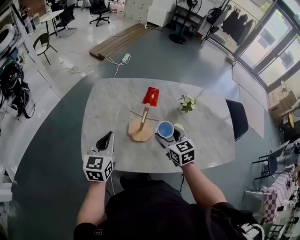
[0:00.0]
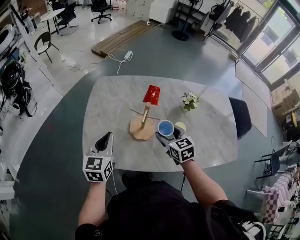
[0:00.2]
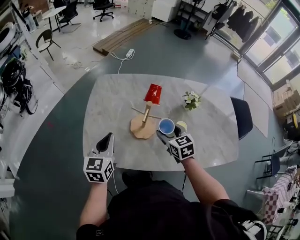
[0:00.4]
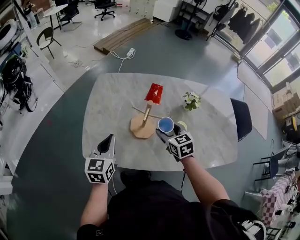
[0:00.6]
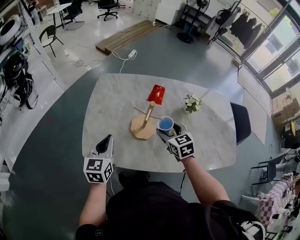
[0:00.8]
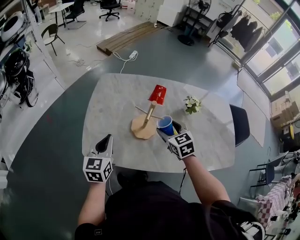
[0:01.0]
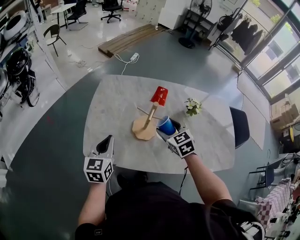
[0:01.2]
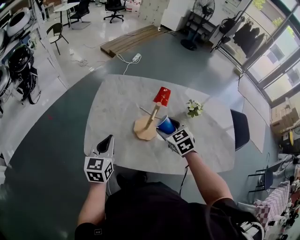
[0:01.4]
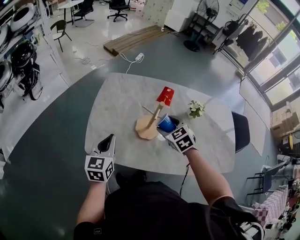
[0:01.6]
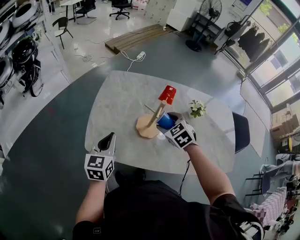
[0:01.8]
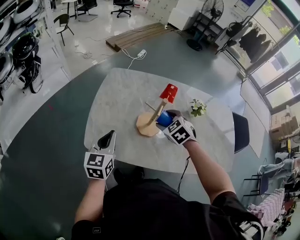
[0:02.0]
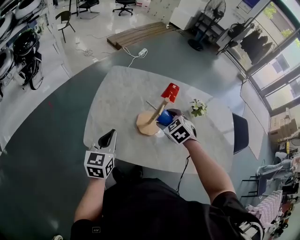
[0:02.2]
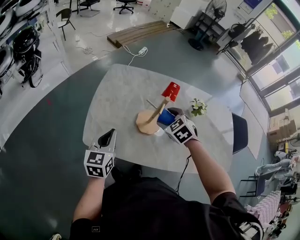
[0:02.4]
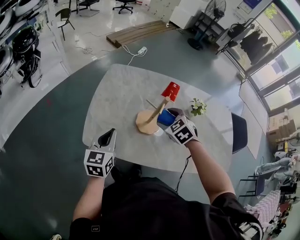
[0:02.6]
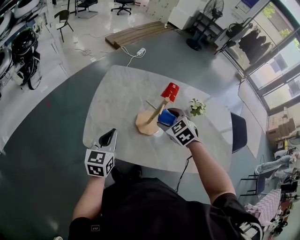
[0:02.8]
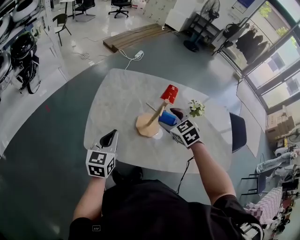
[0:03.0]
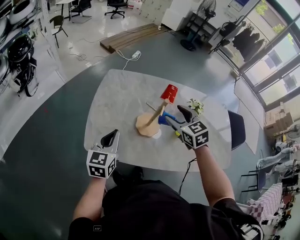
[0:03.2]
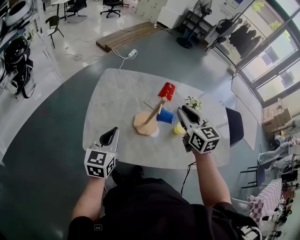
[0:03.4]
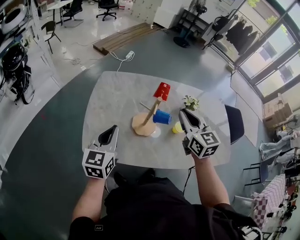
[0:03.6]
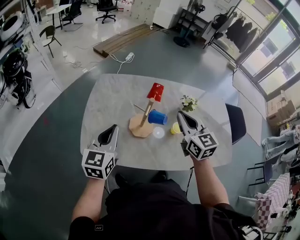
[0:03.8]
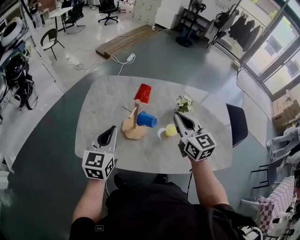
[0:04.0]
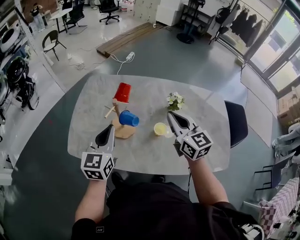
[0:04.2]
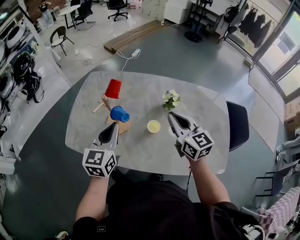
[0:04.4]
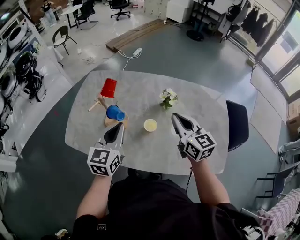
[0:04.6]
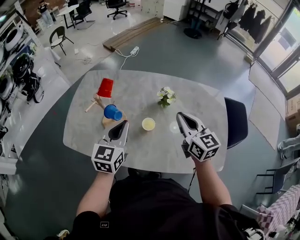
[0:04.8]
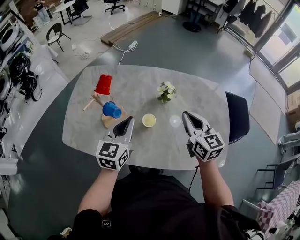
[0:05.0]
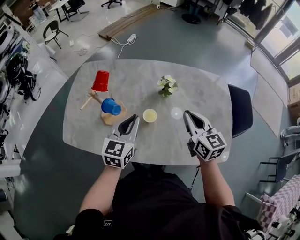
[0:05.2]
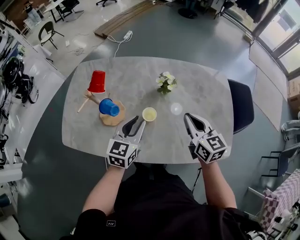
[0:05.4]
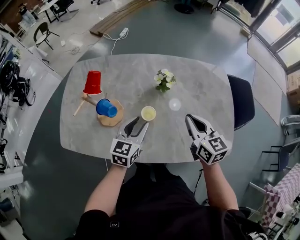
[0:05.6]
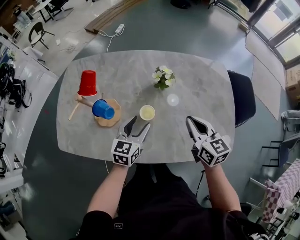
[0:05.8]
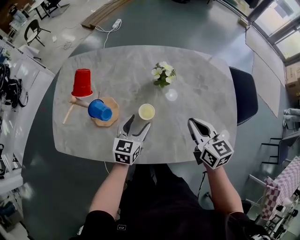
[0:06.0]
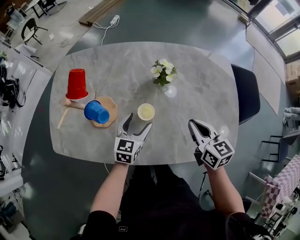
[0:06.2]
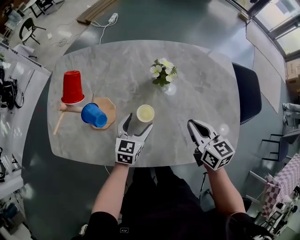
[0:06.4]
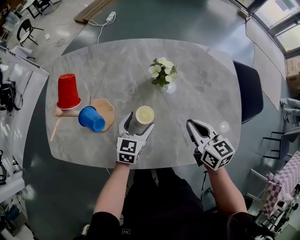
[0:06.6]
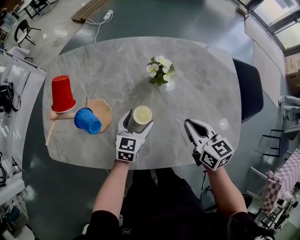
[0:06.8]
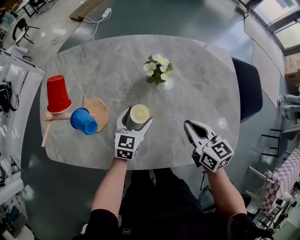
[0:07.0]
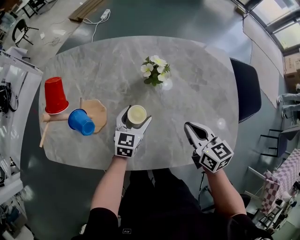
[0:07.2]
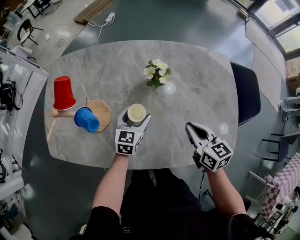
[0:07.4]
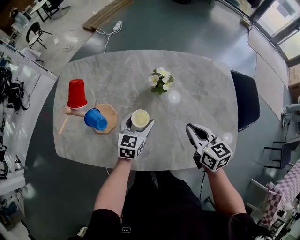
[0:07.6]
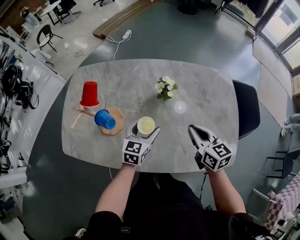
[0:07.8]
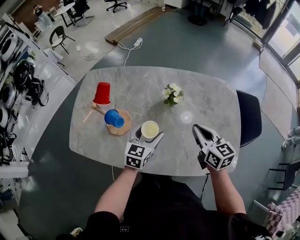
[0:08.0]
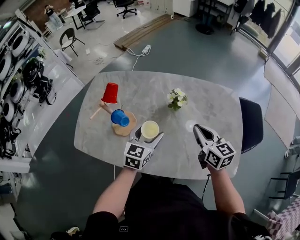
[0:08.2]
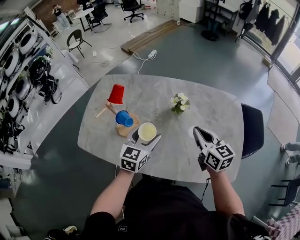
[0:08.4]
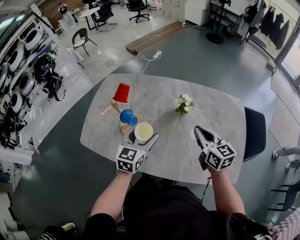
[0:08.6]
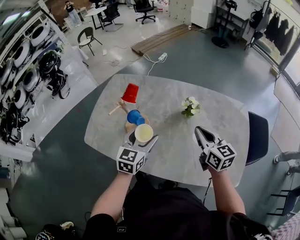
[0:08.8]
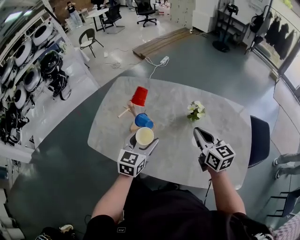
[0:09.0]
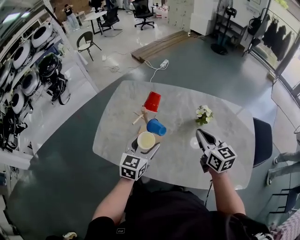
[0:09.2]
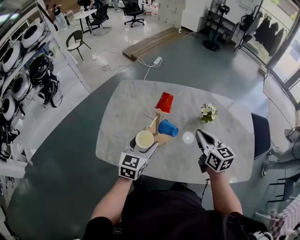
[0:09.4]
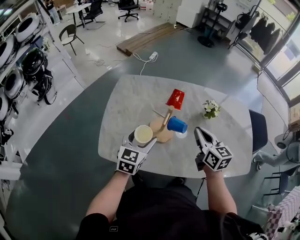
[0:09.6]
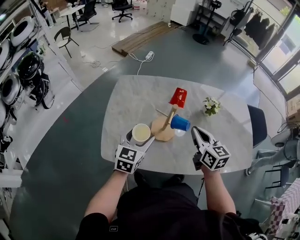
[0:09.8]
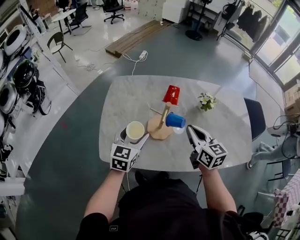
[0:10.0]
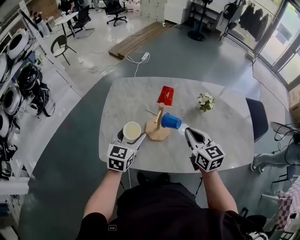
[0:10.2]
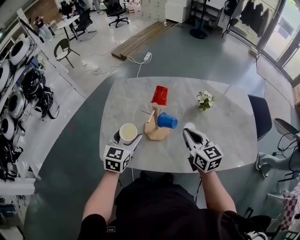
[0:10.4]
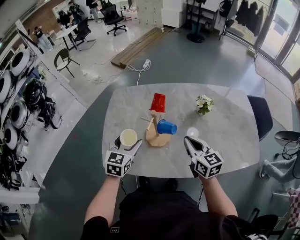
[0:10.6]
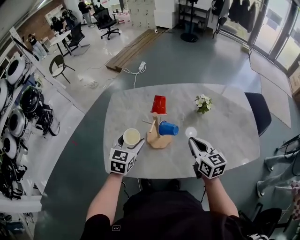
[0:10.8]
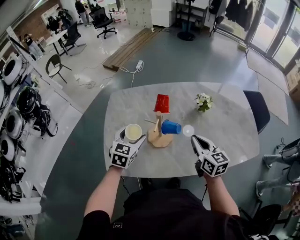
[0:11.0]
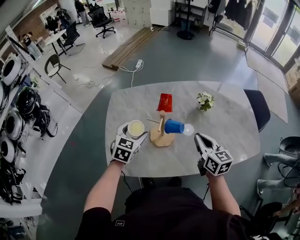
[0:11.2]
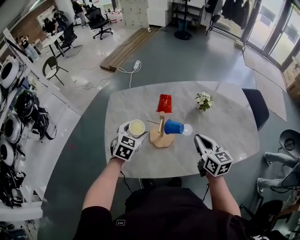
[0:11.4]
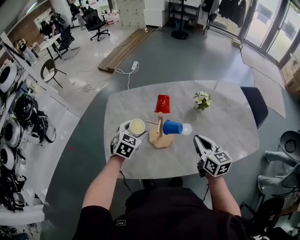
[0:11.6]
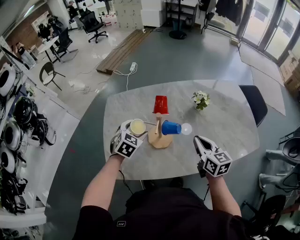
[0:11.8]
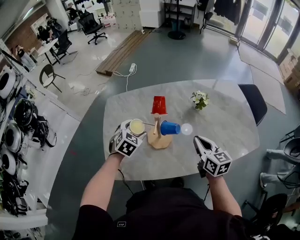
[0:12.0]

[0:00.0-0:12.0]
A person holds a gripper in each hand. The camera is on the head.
0:00.0 to 0:01.6: The left gripper ends up some 5 cm from where it was. The right gripper changes place by about 5 cm, and turns by about 30 degrees.
0:01.6 to 0:03.0: The grippers move only a little.
0:03.0 to 0:04.4: The grippers both shift to the right by approximately 25 cm. The right gripper tips its fingers upward by roughly 40 degrees, and closes its fingers.
0:04.4 to 0:06.0: The right gripper is displaced downward and to the right by approximately 15 cm, and changes its angle by about 20 degrees. The left gripper goes roughly 25 cm downward and to the right, turns by approximately 20 degrees, and opens.
0:06.0 to 0:07.6: The left gripper heads forward, covering about 5 cm.
0:07.6 to 0:09.0: The left gripper heads upward and to the left, covering roughly 20 cm; the right gripper goes about 15 cm to the left and upward.
0:09.0 to 0:10.4: Both grippers move to the left, approximately 15 cm.
0:10.4 to 0:12.0: The left gripper goes approximately 10 cm forward and downward, and turns by approximately 40 degrees.

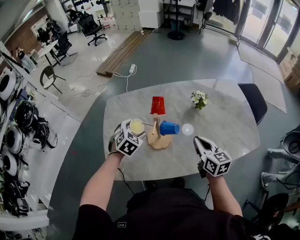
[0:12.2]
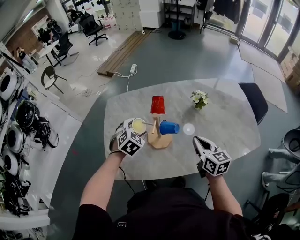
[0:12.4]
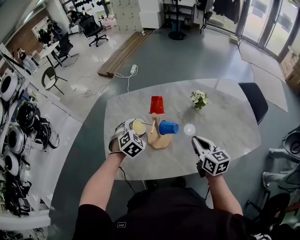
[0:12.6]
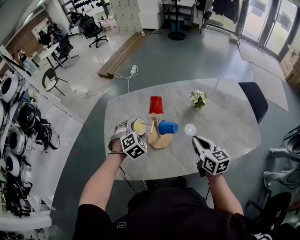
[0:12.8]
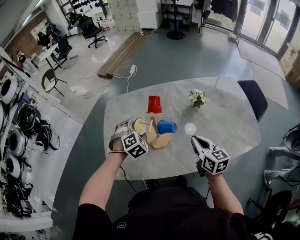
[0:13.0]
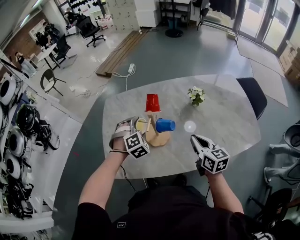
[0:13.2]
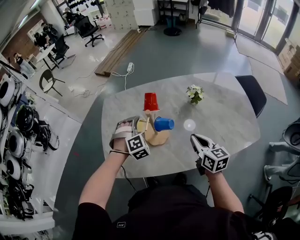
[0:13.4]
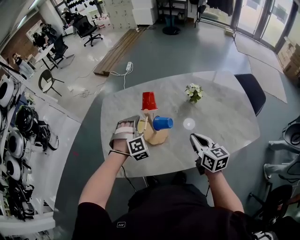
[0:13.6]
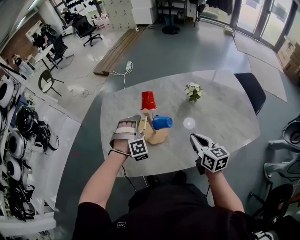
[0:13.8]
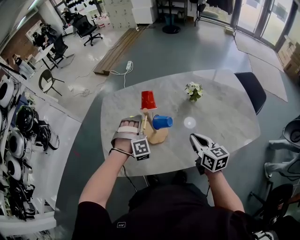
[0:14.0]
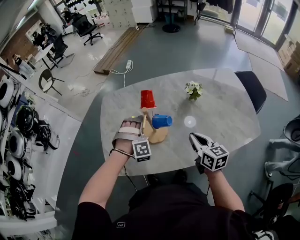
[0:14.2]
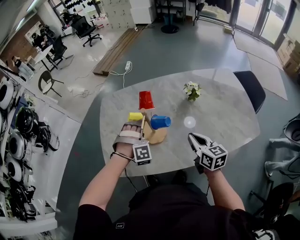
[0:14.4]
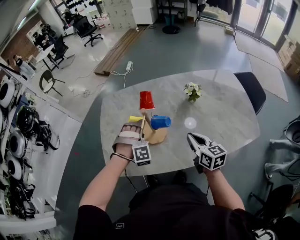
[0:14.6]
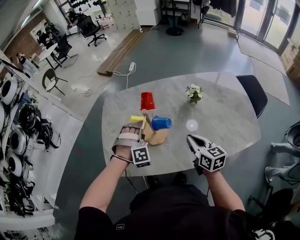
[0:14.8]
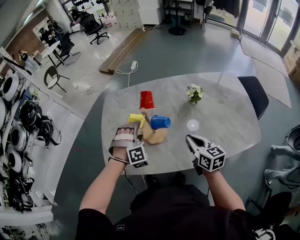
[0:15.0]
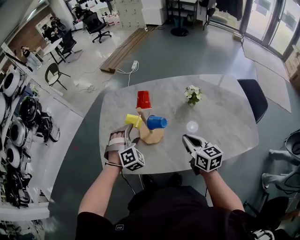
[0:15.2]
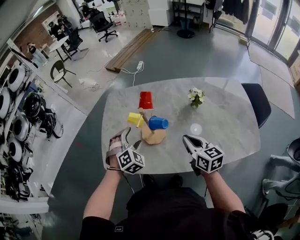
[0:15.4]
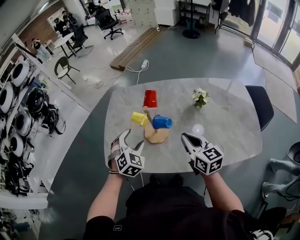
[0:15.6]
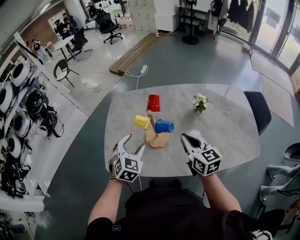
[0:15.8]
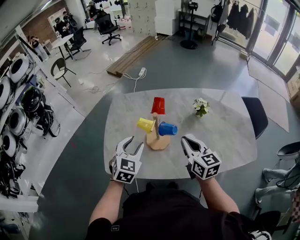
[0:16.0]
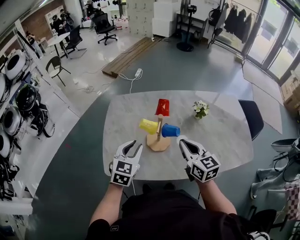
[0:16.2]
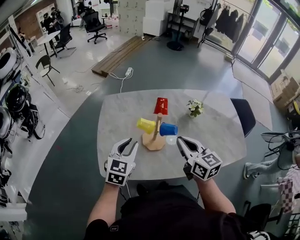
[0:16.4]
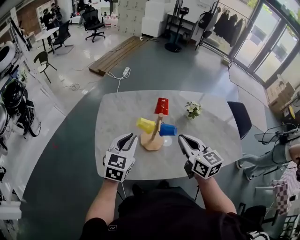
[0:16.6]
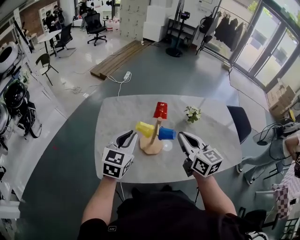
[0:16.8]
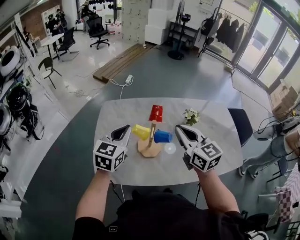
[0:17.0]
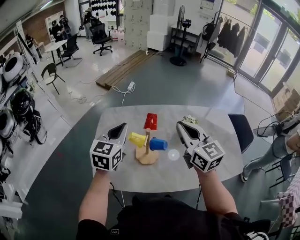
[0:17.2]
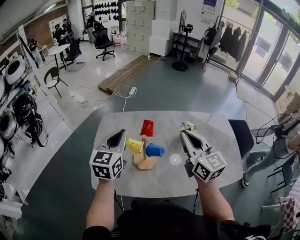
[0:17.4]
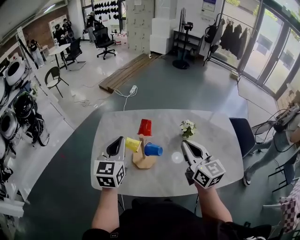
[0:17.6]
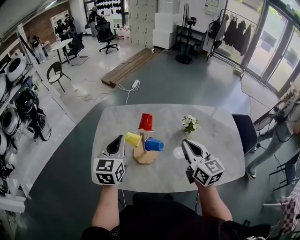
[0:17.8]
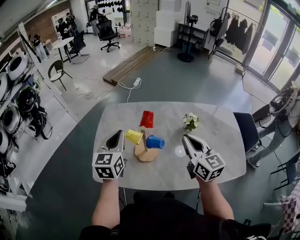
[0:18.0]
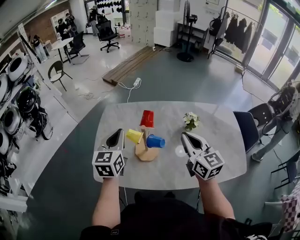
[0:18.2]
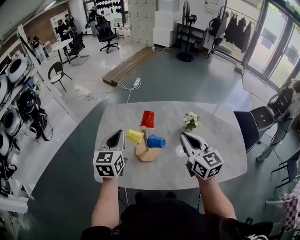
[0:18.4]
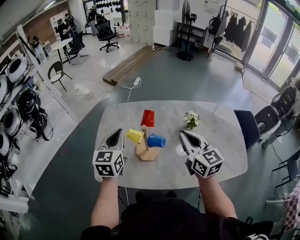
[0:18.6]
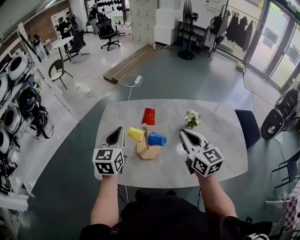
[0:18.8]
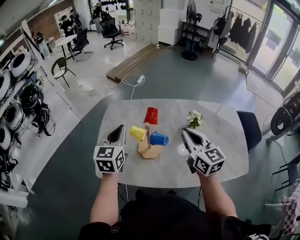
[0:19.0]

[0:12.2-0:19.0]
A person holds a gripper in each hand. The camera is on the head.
0:12.2 to 0:13.6: The left gripper rolls clockwise, seen from behind, by about 40 degrees.
0:13.6 to 0:15.0: The grippers stay close to where they were, moving slightly.
0:15.0 to 0:16.2: Both grippers move to the left and upward, approximately 10 cm. The left gripper twists approximately 70 degrees counterclockwise, seen from behind, and closes its fingers.
0:16.2 to 0:17.6: The left gripper heads upward and forward, covering some 15 cm, and turns by some 20 degrees. Meanwhile the right gripper is displaced upward and to the right by about 15 cm.
0:17.6 to 0:19.0: There are only small adjustments of the grippers.

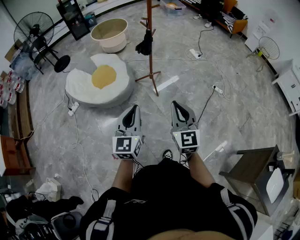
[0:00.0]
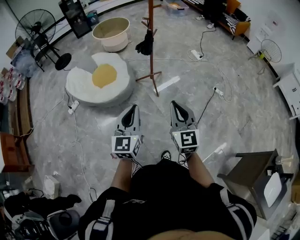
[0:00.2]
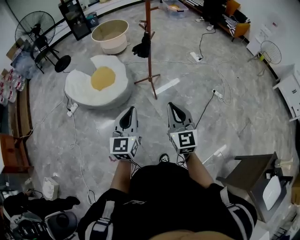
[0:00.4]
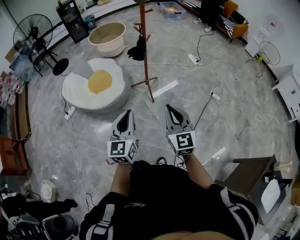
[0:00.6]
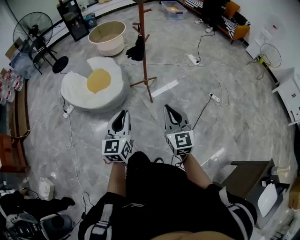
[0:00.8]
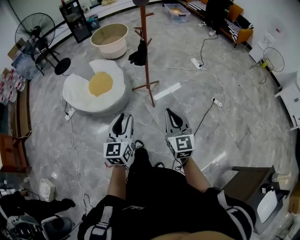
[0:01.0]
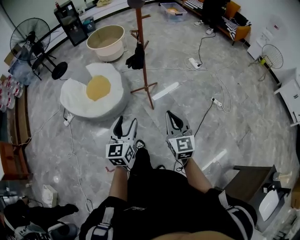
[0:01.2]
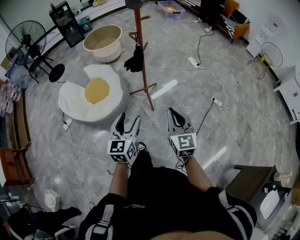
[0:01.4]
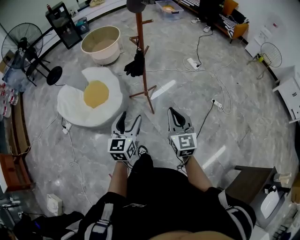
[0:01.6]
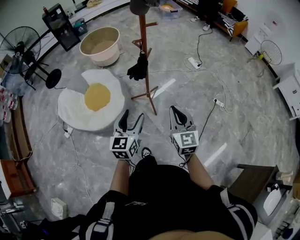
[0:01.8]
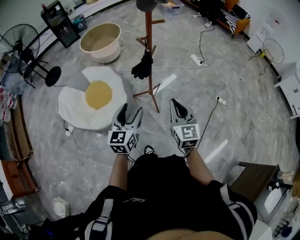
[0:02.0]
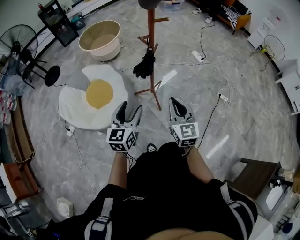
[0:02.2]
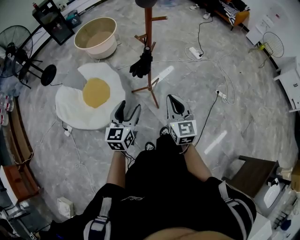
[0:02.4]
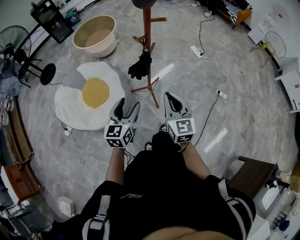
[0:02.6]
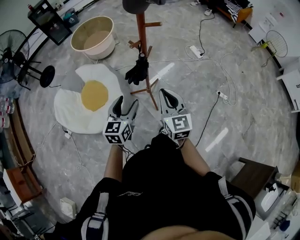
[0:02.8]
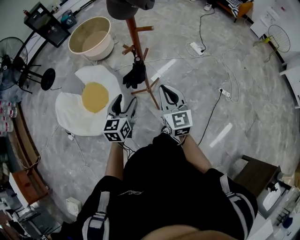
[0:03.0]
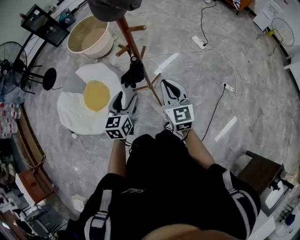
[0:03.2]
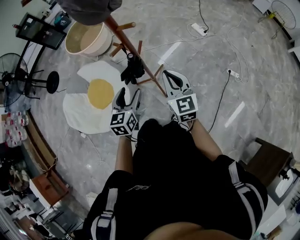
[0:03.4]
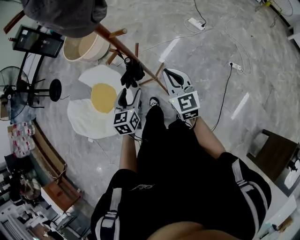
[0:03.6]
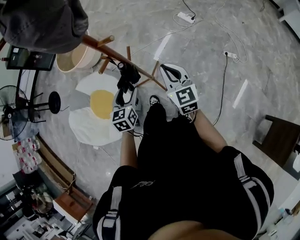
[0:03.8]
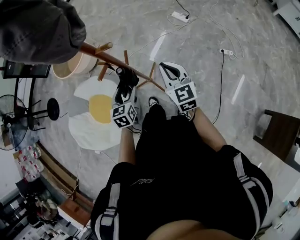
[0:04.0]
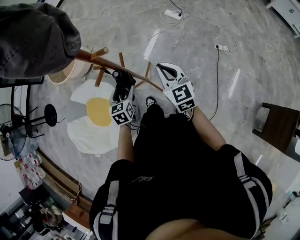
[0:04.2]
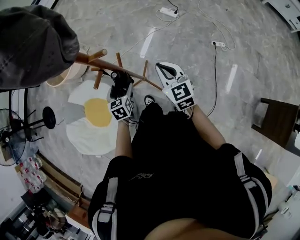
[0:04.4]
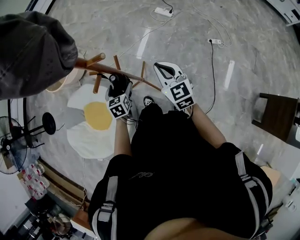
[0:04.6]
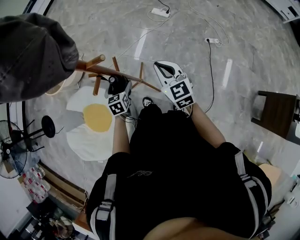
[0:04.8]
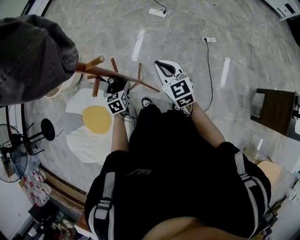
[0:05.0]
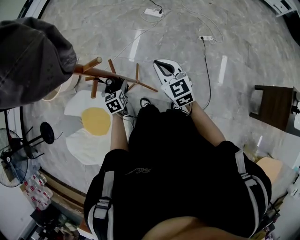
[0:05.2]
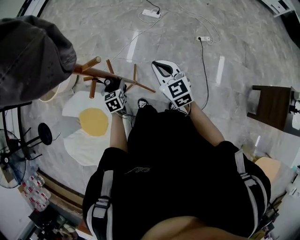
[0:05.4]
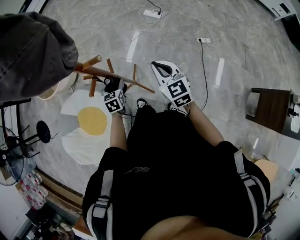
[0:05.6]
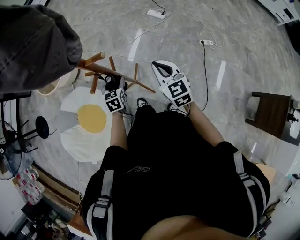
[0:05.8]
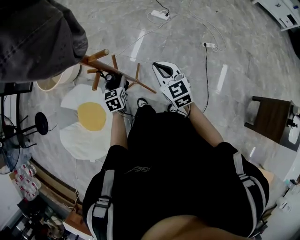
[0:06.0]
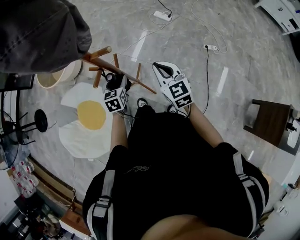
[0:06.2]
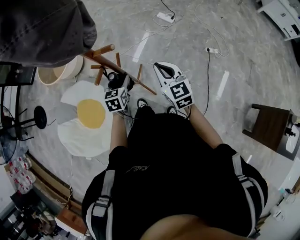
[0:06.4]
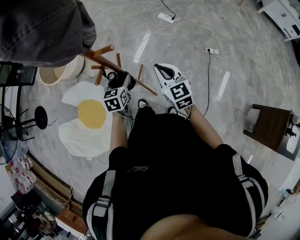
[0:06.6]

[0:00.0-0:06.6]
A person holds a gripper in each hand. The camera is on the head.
0:00.0 to 0:01.6: The two grippers go about 25 cm forward. The left gripper opens.
0:01.6 to 0:03.2: Both grippers move forward, about 30 cm.
0:03.2 to 0:05.0: The left gripper is displaced forward and downward by some 25 cm, and swivels roughly 30 degrees. Meanwhile the right gripper shifts about 10 cm forward, to the right and downward.
0:05.0 to 0:06.6: The left gripper shifts roughly 10 cm upward, and closes up.
